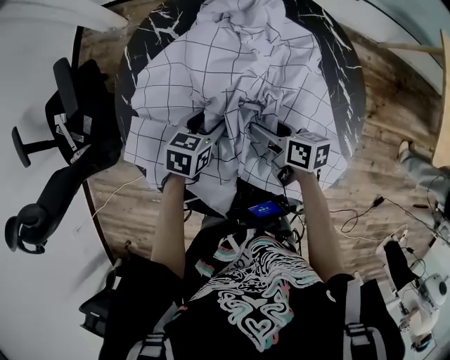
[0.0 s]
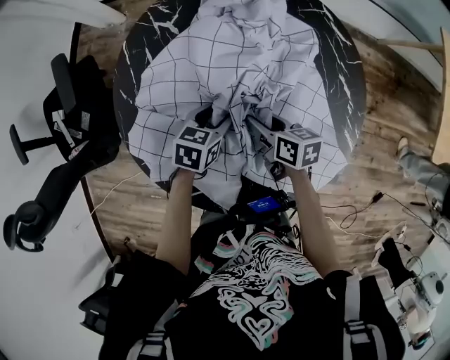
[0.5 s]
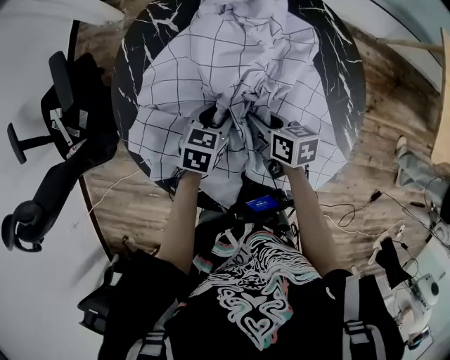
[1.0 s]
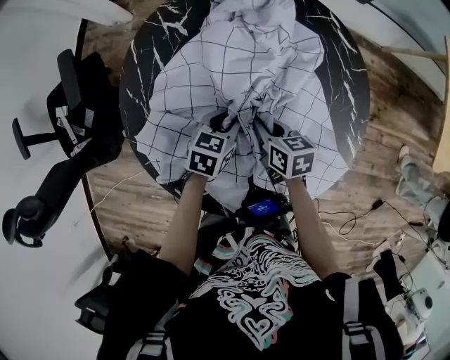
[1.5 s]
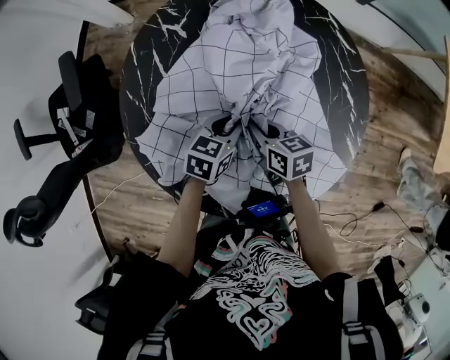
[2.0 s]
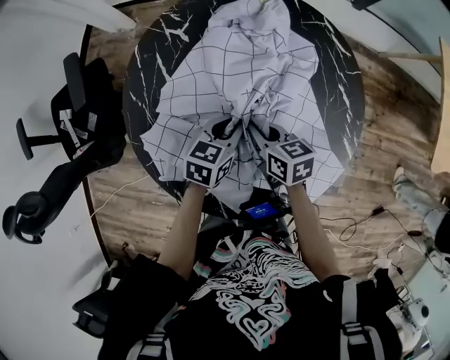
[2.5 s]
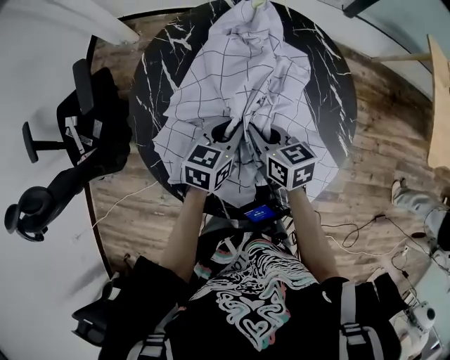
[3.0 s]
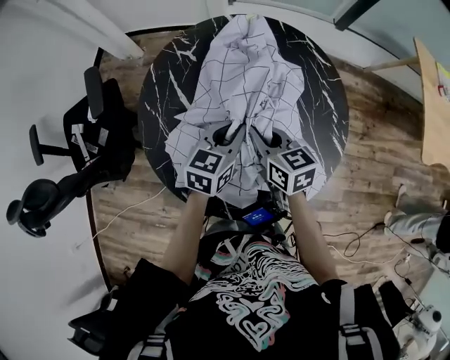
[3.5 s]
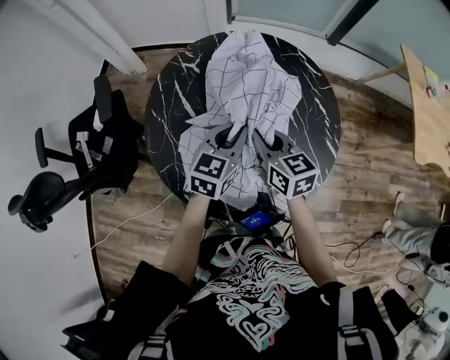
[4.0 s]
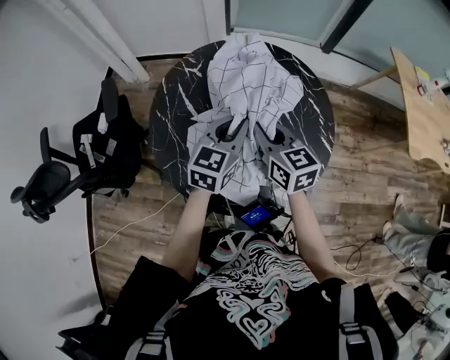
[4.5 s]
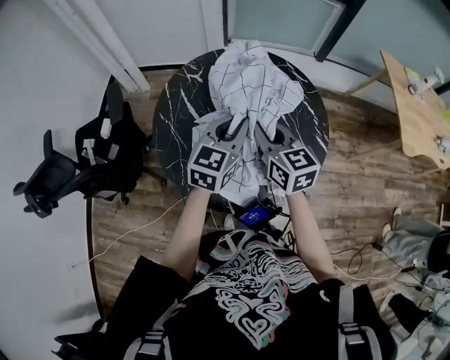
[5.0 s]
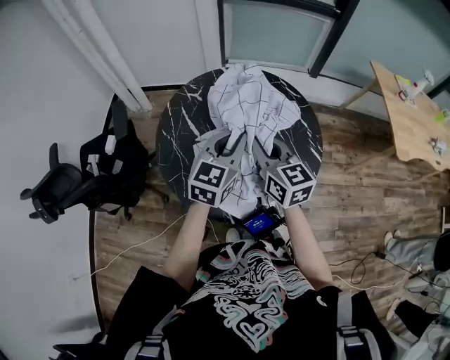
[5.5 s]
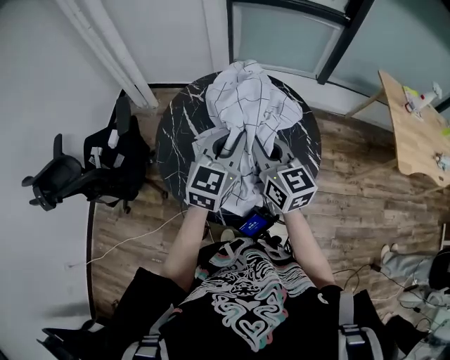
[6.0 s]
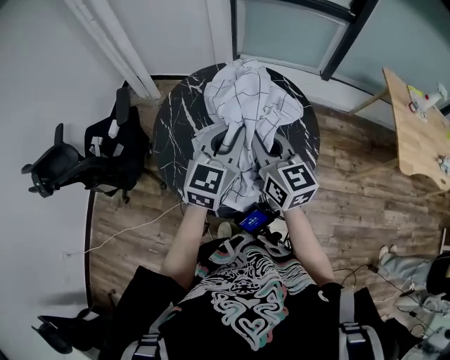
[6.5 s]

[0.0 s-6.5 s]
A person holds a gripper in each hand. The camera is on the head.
0.0 to 2.0 s: The left gripper closes up. Meanwhile the right gripper closes up.
2.0 to 4.5 s: The grippers both shift upward by approximately 25 cm. The left gripper rotates about 30 degrees. Meanwhile the right gripper turns by roughly 30 degrees.
4.5 to 6.5 s: The grippers both shift upward and backward by about 10 cm.

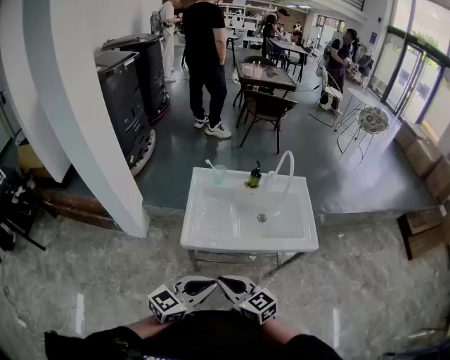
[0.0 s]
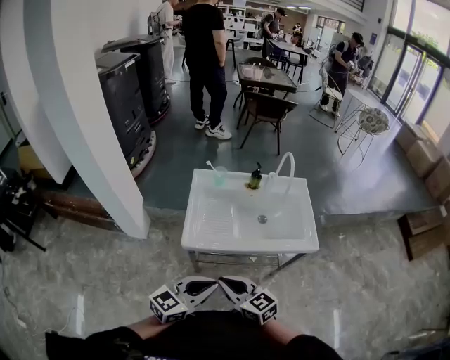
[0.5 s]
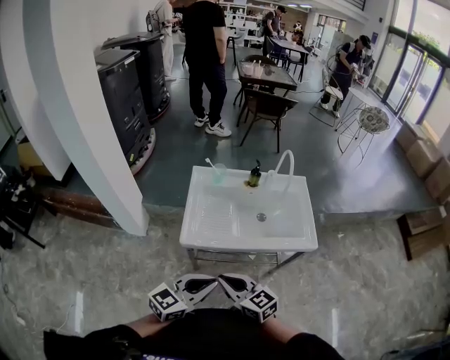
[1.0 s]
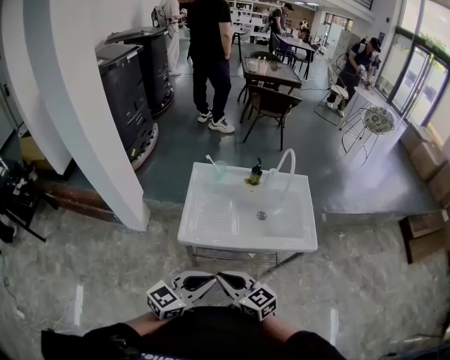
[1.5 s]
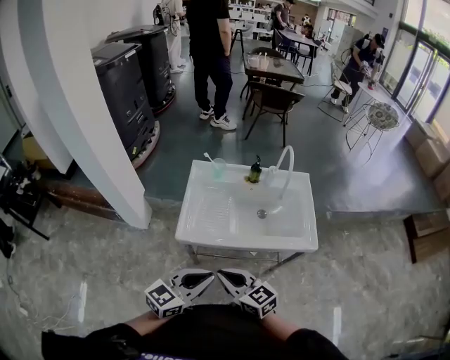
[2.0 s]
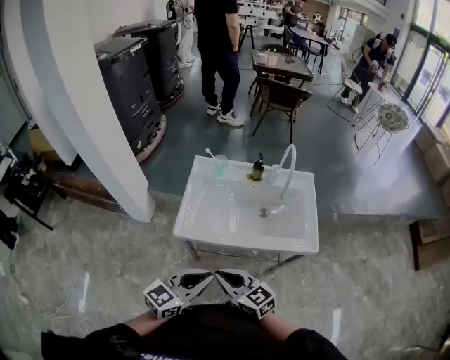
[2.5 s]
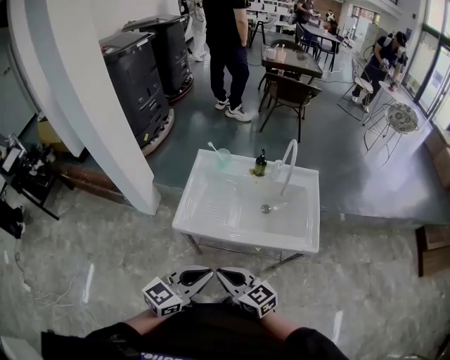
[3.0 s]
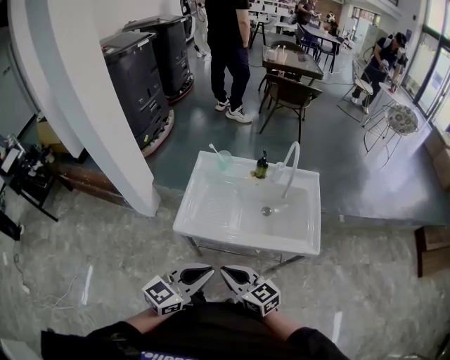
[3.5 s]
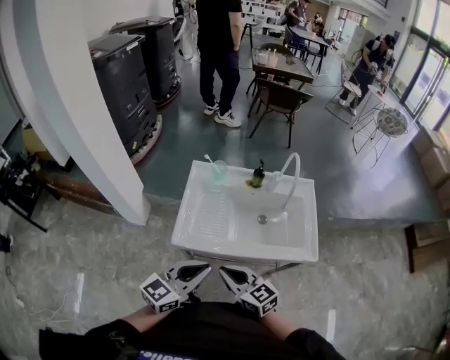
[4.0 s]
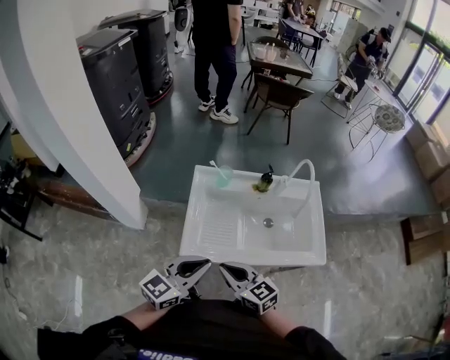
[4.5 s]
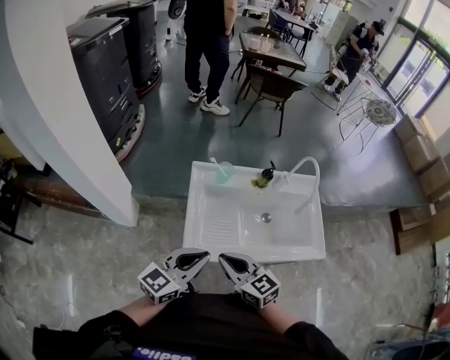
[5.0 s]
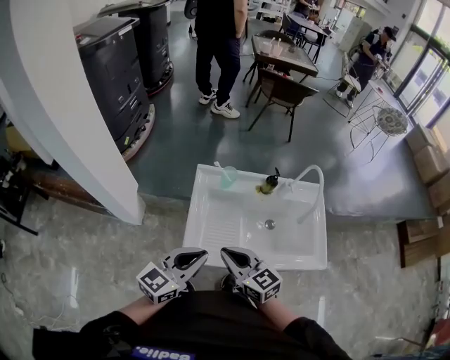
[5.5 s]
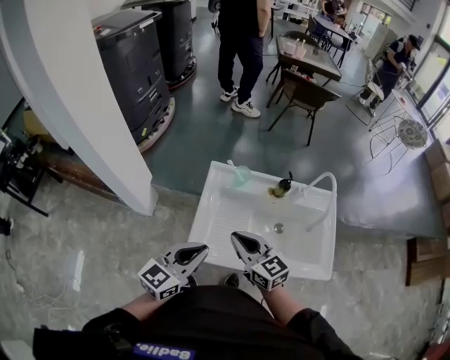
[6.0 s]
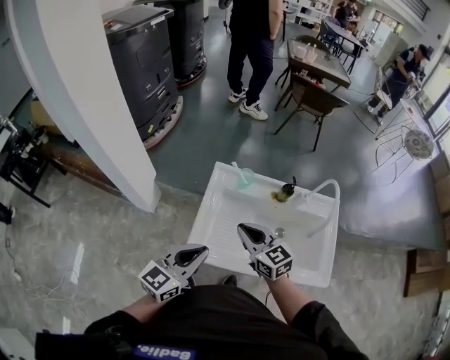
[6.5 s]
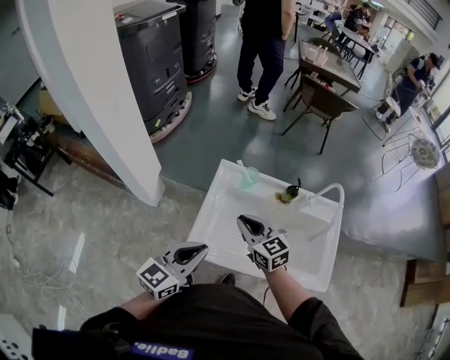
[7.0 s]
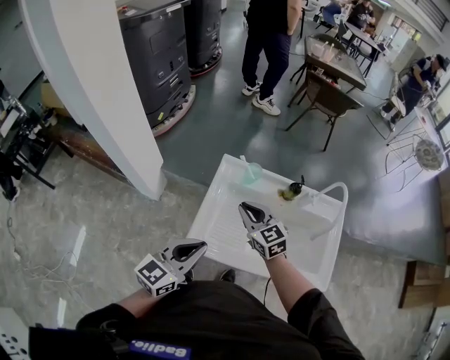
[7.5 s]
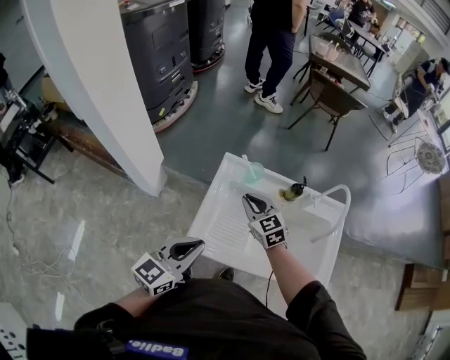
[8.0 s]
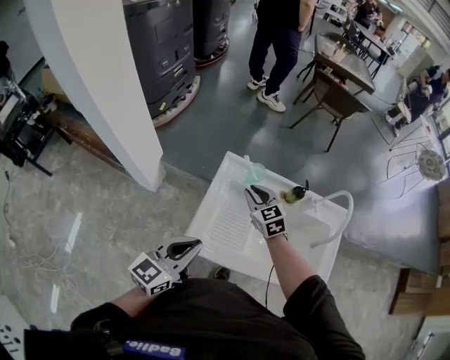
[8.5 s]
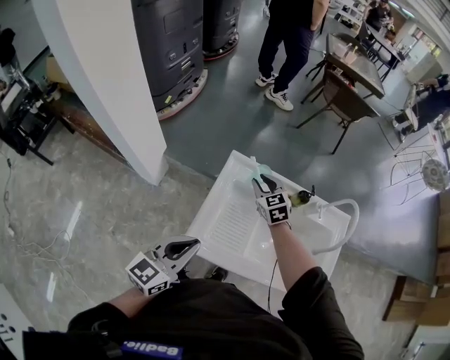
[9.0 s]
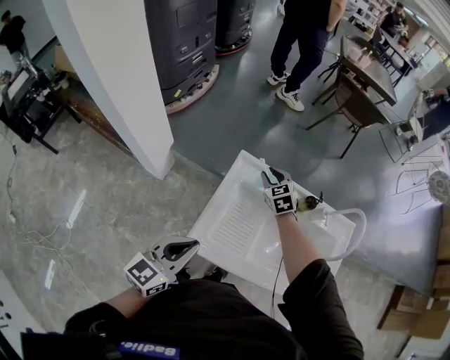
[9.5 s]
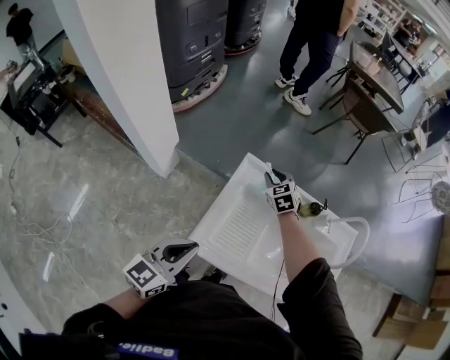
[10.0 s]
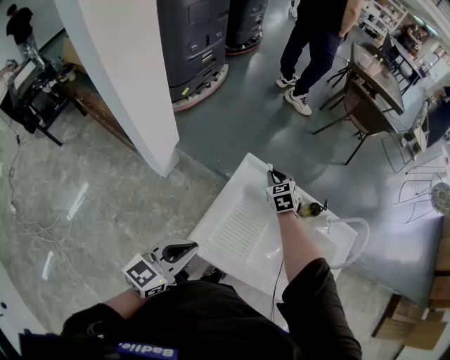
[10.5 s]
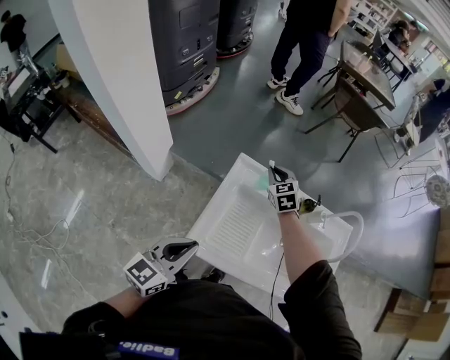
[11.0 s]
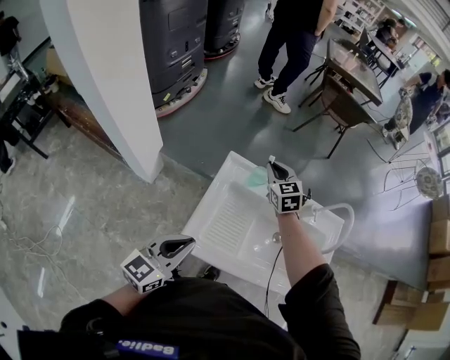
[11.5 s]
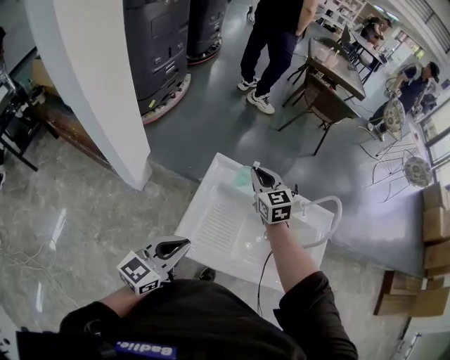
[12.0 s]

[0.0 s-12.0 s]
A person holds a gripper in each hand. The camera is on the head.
0.0 to 2.0 s: The grippers make only small movements.
2.0 to 4.0 s: The two grippers go about 5 cm forward.
4.0 to 6.0 s: The right gripper goes some 20 cm forward. The left gripper heads forward and to the left, covering some 15 cm.
6.0 to 8.0 s: The right gripper heads forward and downward, covering roughly 15 cm, and changes its angle by approximately 20 degrees.
8.0 to 10.0 s: The right gripper heads forward and downward, covering about 20 cm. Meanwhile the left gripper changes place by approximately 5 cm.
10.0 to 12.0 s: The right gripper moves upward, about 15 cm, and swivels roughly 20 degrees.

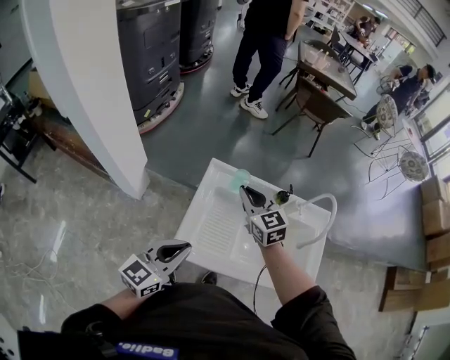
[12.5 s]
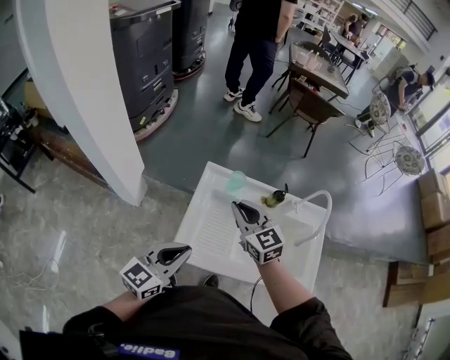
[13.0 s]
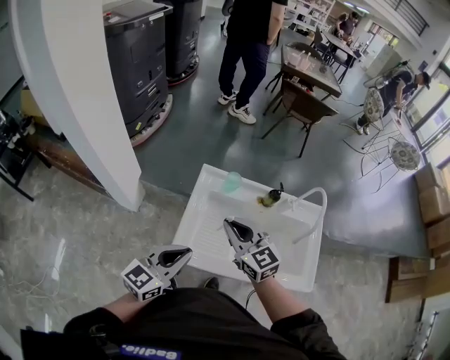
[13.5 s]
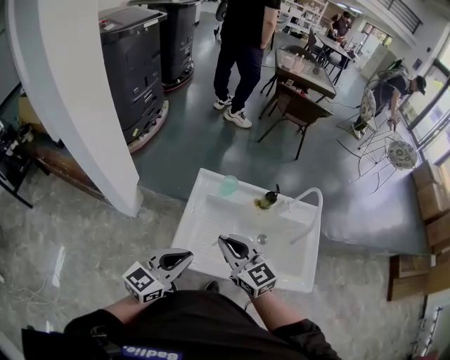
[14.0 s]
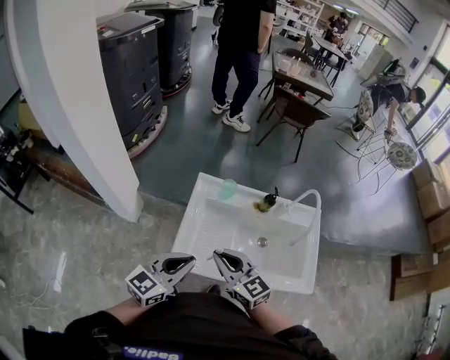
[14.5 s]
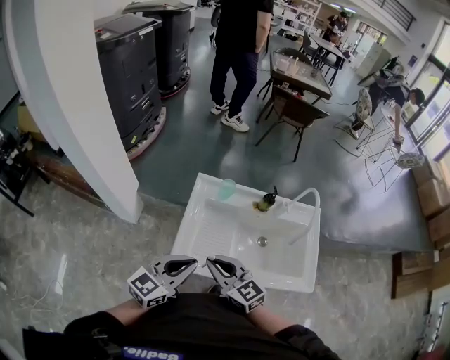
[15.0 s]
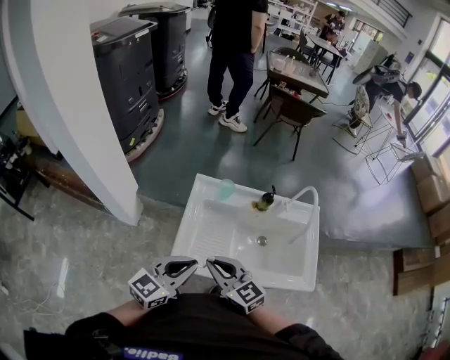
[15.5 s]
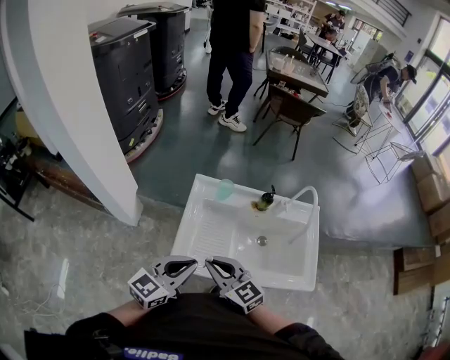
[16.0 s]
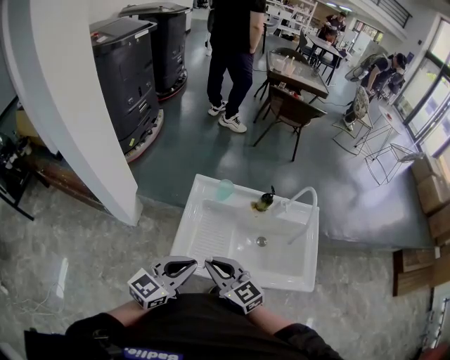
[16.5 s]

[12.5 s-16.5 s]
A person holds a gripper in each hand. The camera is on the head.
12.5 to 14.5 s: The right gripper shifts approximately 20 cm backward.
14.5 to 16.5 s: There are only small adjustments of the grippers.

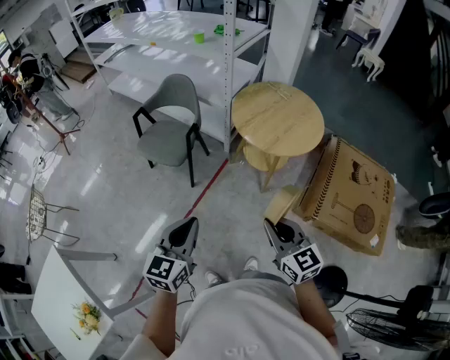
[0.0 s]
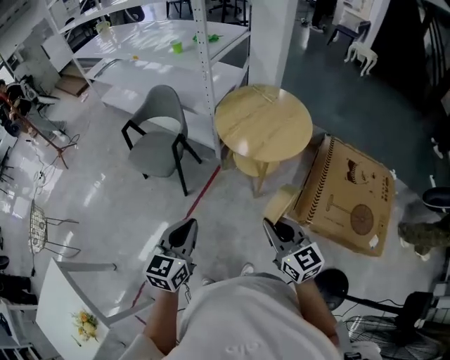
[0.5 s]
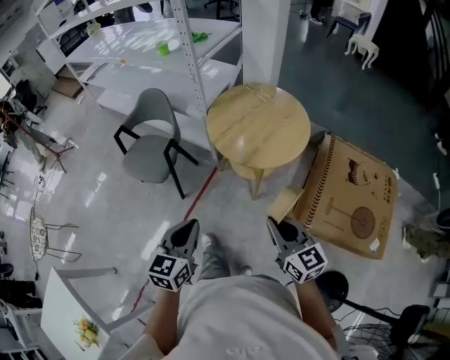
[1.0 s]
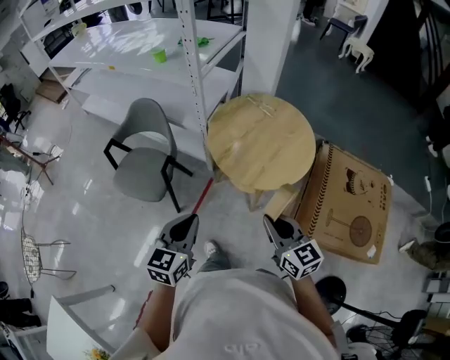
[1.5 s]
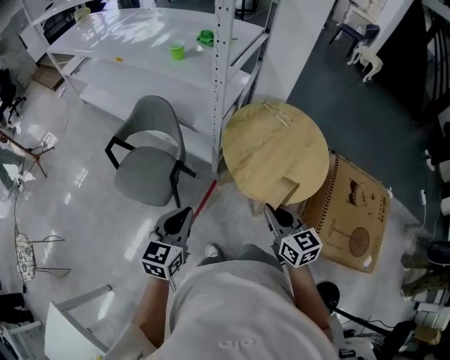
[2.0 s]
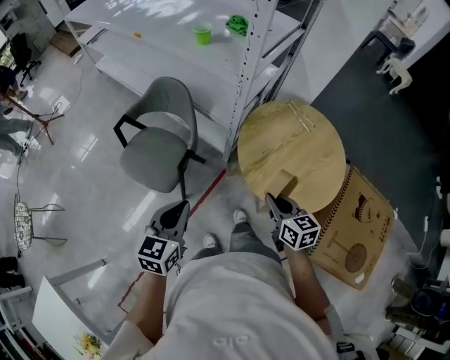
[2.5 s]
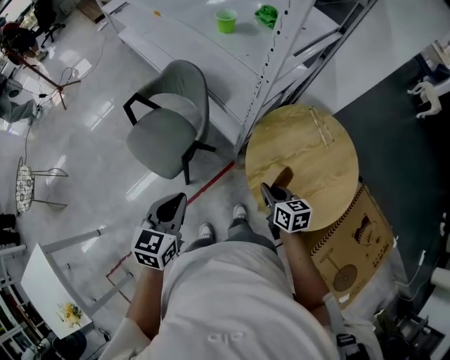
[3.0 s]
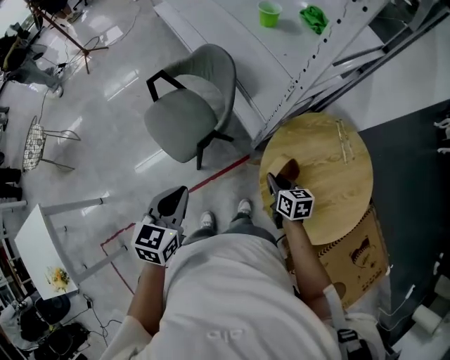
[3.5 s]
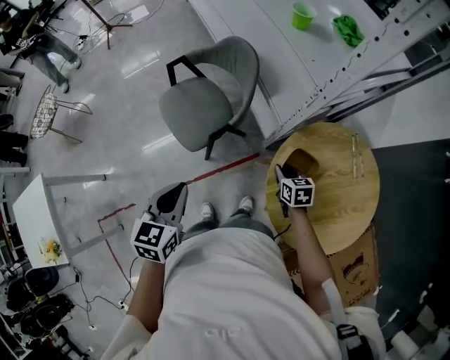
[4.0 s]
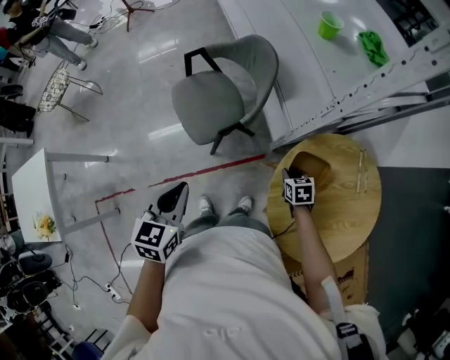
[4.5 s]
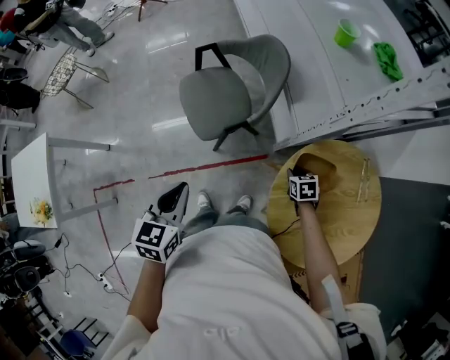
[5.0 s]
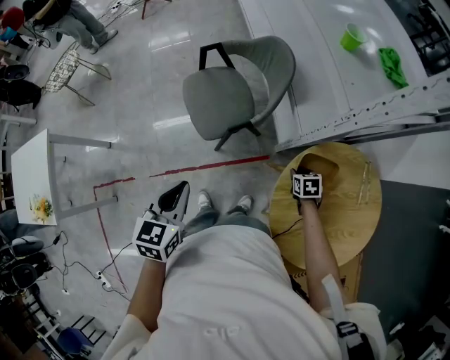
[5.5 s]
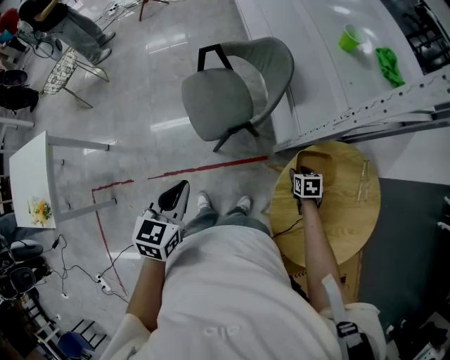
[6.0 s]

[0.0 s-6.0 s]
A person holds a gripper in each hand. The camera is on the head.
0.0 to 2.0 s: Both grippers move forward, roughly 35 cm.
2.0 to 4.0 s: The right gripper changes place by approximately 40 cm, and turns by roughly 40 degrees, while the left gripper moves some 10 cm, and turns by approximately 40 degrees.
4.0 to 6.0 s: The right gripper travels downward by about 5 cm, turns by about 20 degrees, and opens up. Meanwhile the left gripper moves some 5 cm.
